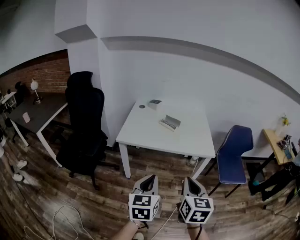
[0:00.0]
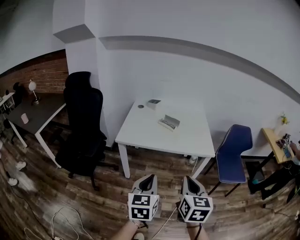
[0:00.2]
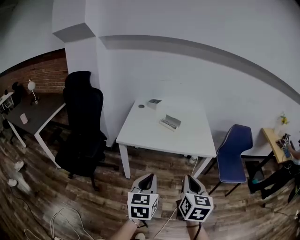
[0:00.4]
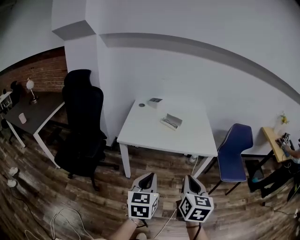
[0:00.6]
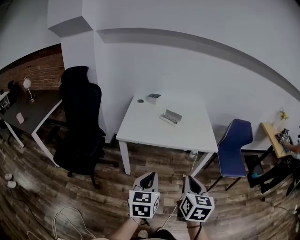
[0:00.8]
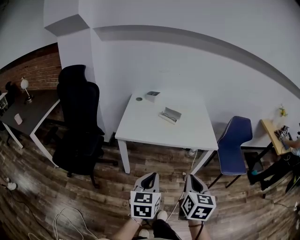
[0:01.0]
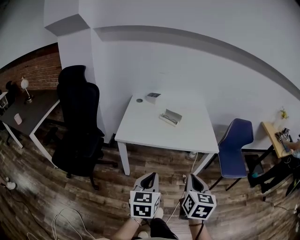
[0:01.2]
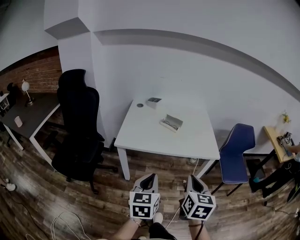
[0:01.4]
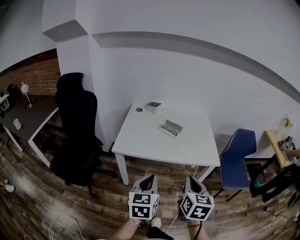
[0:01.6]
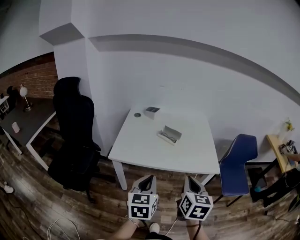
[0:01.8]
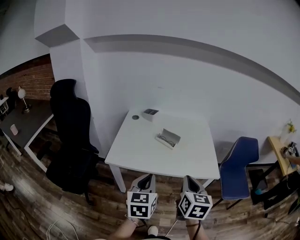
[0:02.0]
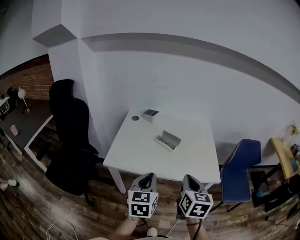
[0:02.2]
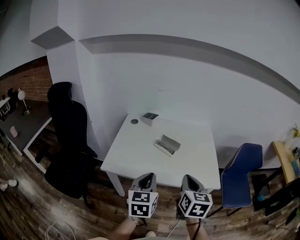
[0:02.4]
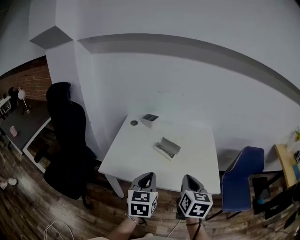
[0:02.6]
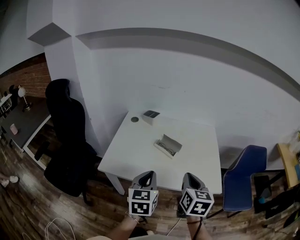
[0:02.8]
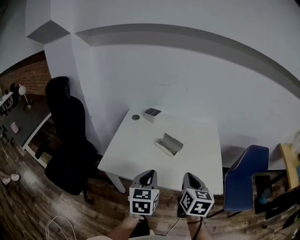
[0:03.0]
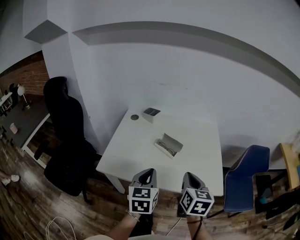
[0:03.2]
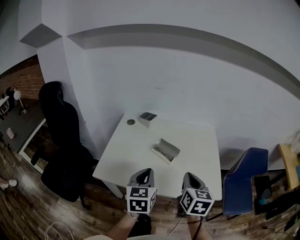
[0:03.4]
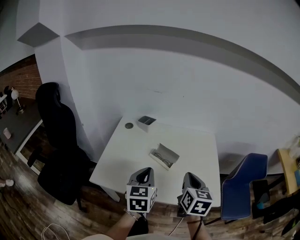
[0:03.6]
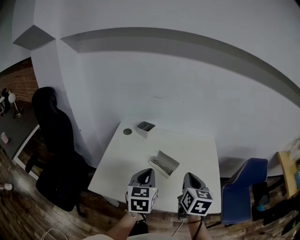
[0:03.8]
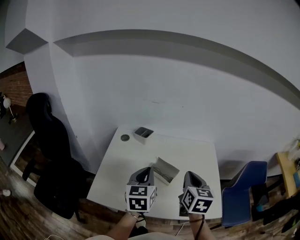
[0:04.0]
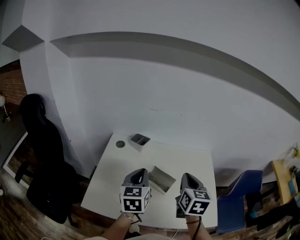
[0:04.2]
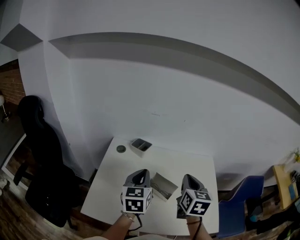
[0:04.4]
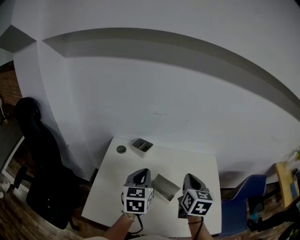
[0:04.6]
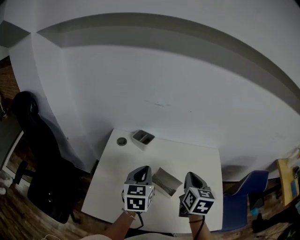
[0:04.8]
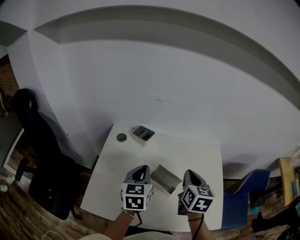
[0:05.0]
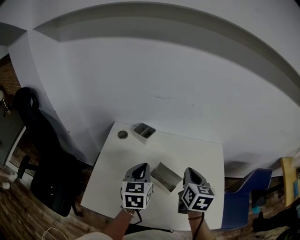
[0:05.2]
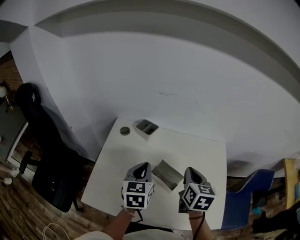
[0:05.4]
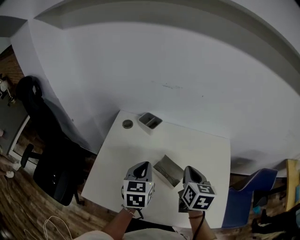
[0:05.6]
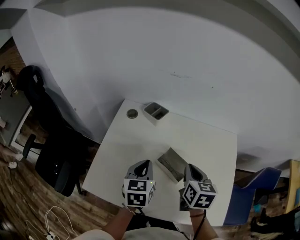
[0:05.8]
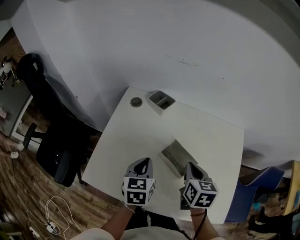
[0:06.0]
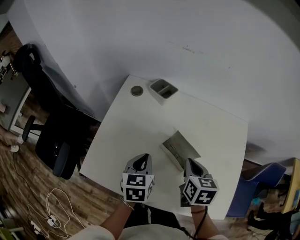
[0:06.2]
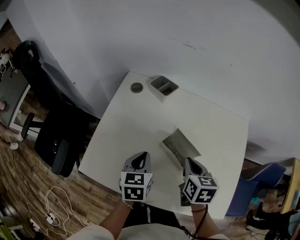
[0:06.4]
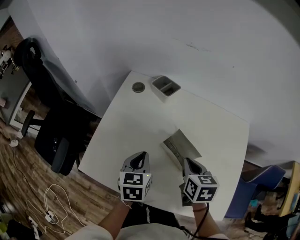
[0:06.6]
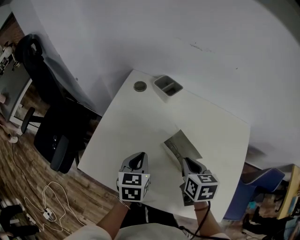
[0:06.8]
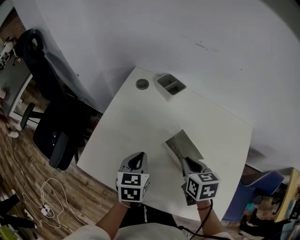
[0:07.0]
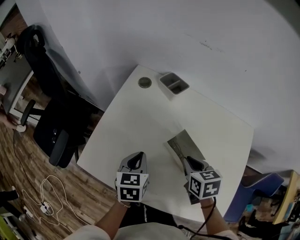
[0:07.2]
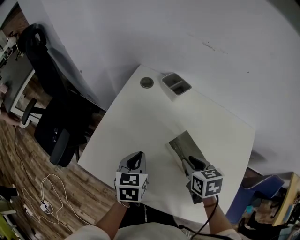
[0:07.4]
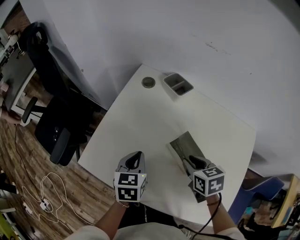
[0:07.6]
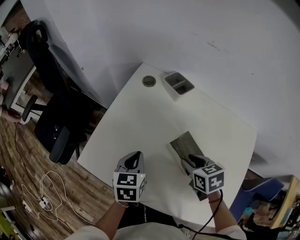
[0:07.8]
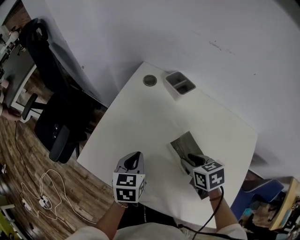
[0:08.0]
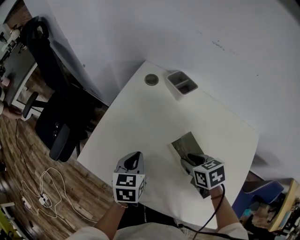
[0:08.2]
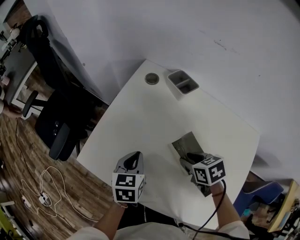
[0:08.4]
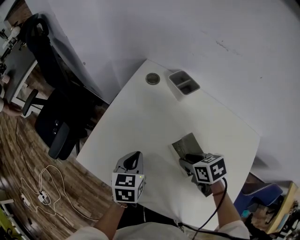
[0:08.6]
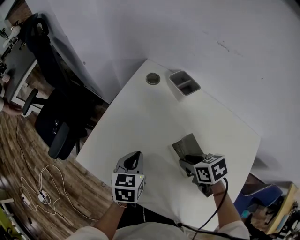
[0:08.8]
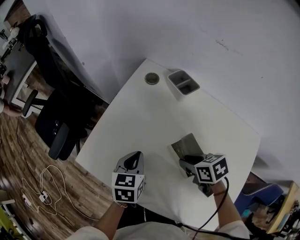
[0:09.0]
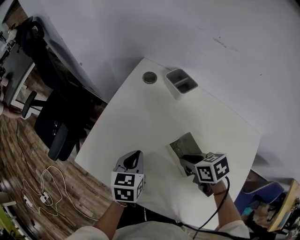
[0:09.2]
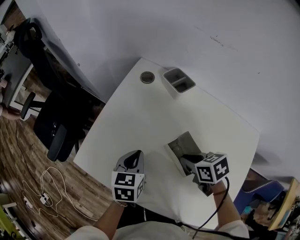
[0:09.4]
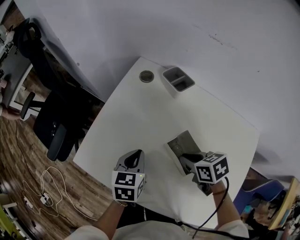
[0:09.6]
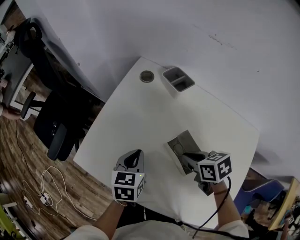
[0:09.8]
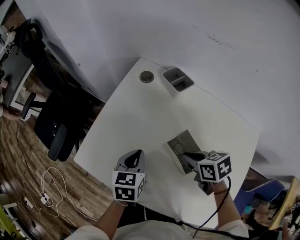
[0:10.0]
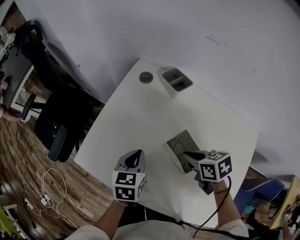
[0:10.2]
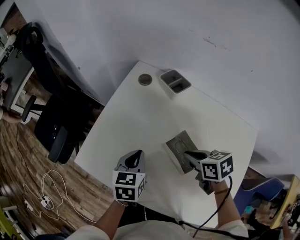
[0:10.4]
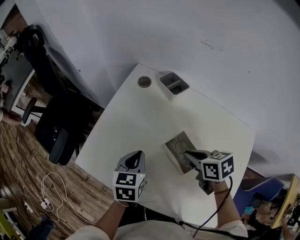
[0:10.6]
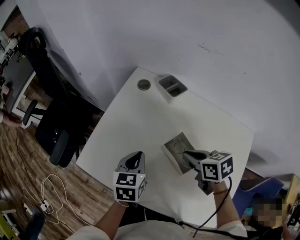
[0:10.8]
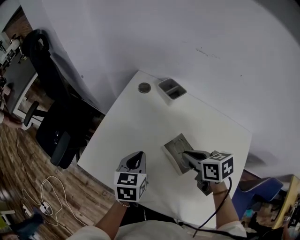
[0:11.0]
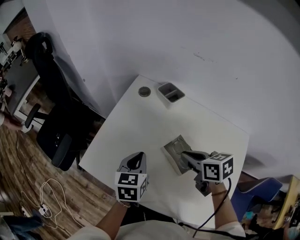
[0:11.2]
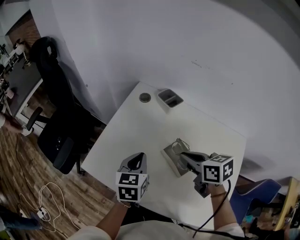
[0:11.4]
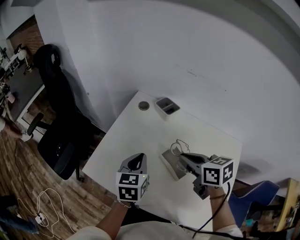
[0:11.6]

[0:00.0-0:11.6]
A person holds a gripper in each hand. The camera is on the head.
0:00.0 to 0:01.4: The two grippers go roughly 5 cm forward.
0:01.4 to 0:02.8: Both grippers travel together forward, about 25 cm.
0:02.8 to 0:04.4: Both grippers move forward, roughly 25 cm.
0:04.4 to 0:05.8: The grippers both shift downward by about 10 cm.
0:05.8 to 0:07.2: The grippers both shift downward by roughly 10 cm. The right gripper swivels roughly 30 degrees.
0:07.2 to 0:08.8: The right gripper swivels some 30 degrees, and opens up.
0:08.8 to 0:10.2: The right gripper closes.
0:10.2 to 0:11.6: The two grippers go some 10 cm upward. The right gripper turns by some 20 degrees.

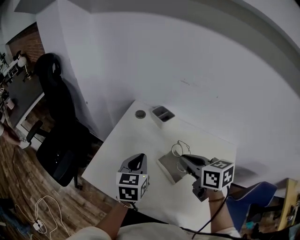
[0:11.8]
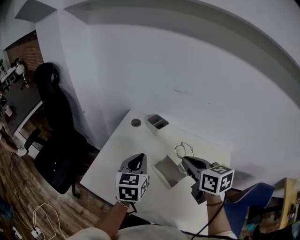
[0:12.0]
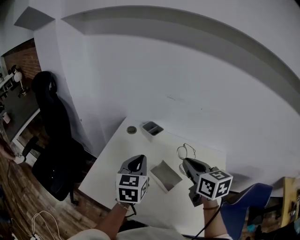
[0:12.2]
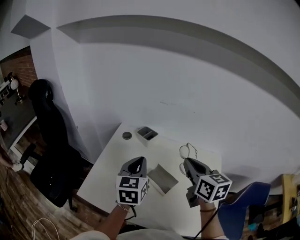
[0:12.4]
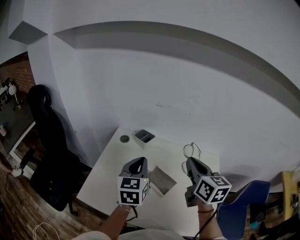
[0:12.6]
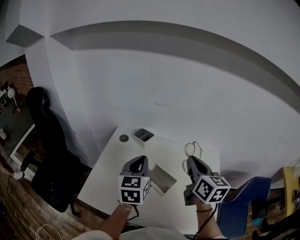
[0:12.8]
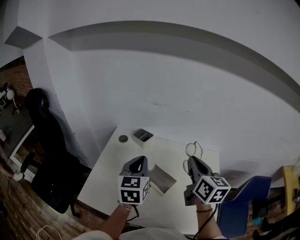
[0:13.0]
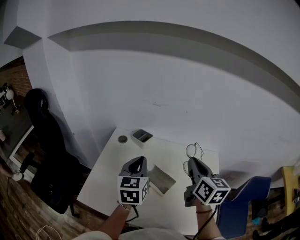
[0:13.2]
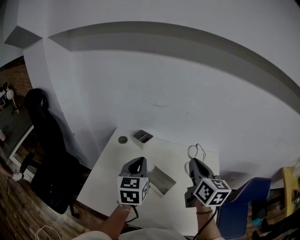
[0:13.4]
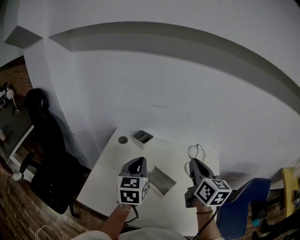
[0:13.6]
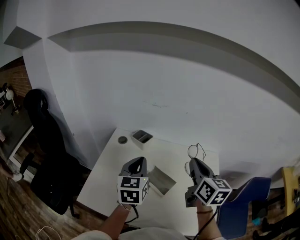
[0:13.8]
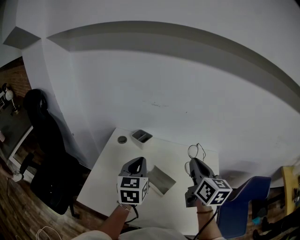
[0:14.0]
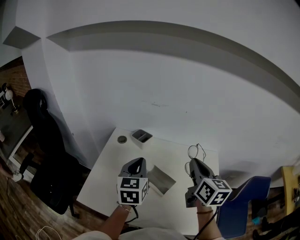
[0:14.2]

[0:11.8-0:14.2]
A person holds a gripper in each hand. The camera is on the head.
0:11.8 to 0:13.0: The left gripper moves upward and to the right, about 10 cm. Meanwhile the right gripper goes about 15 cm to the right and upward, and changes its angle by about 40 degrees.
0:13.0 to 0:14.2: Both grippers stay put.

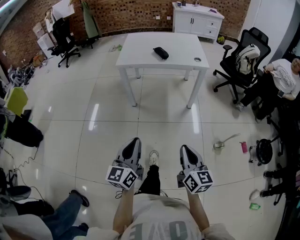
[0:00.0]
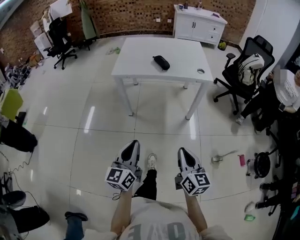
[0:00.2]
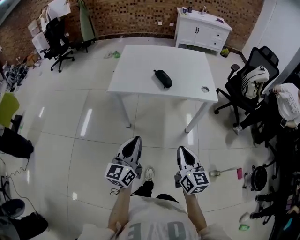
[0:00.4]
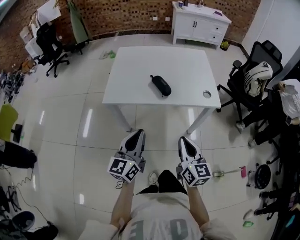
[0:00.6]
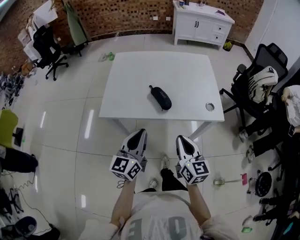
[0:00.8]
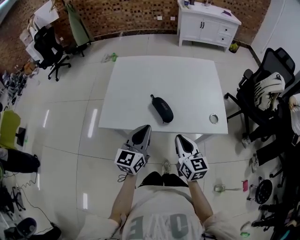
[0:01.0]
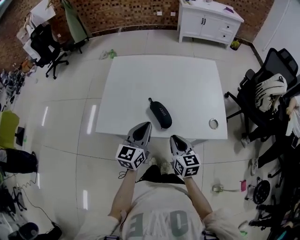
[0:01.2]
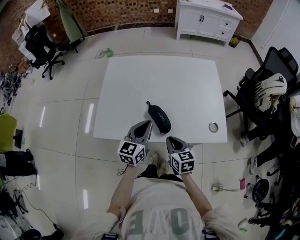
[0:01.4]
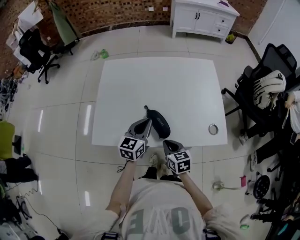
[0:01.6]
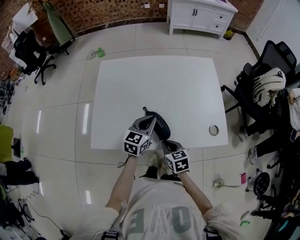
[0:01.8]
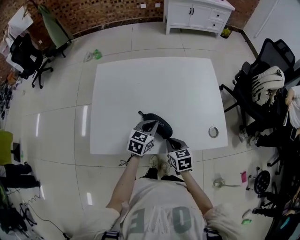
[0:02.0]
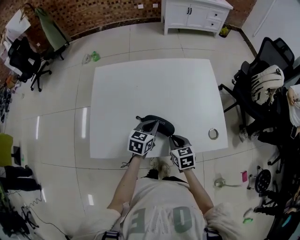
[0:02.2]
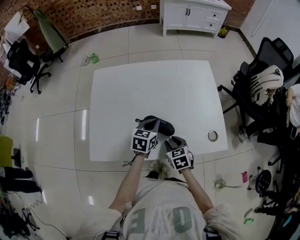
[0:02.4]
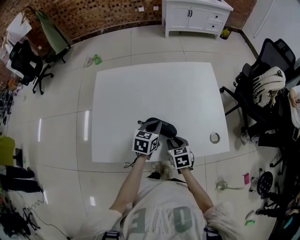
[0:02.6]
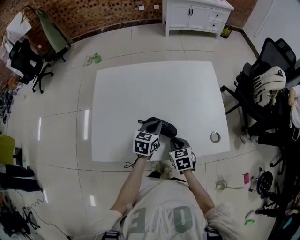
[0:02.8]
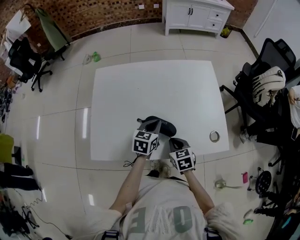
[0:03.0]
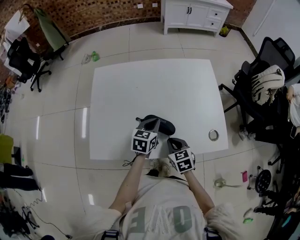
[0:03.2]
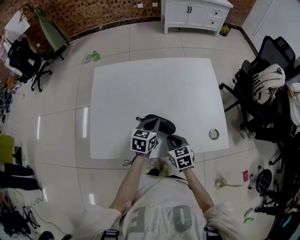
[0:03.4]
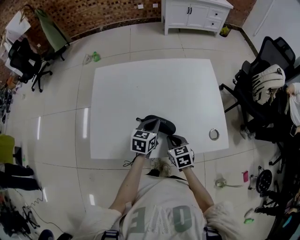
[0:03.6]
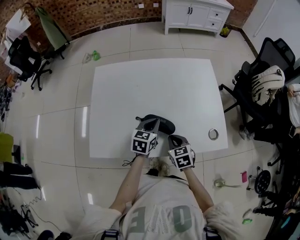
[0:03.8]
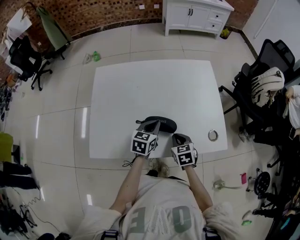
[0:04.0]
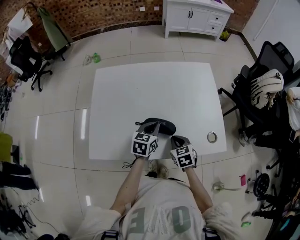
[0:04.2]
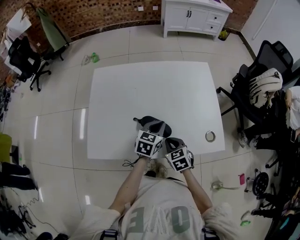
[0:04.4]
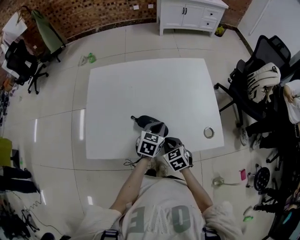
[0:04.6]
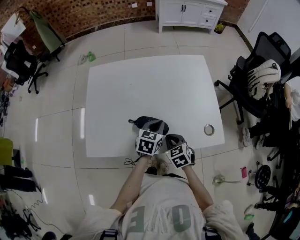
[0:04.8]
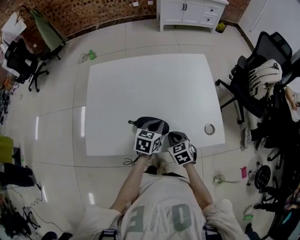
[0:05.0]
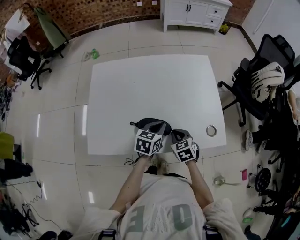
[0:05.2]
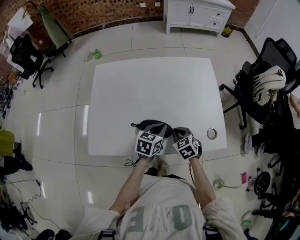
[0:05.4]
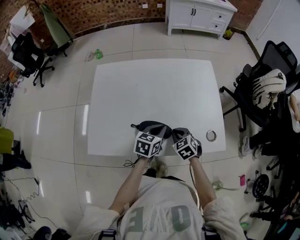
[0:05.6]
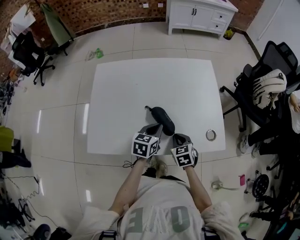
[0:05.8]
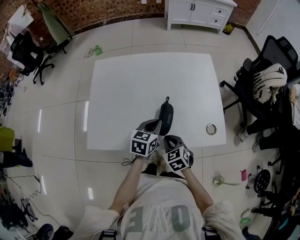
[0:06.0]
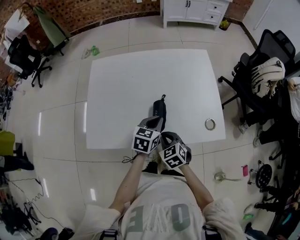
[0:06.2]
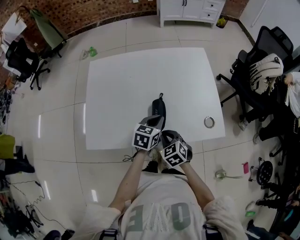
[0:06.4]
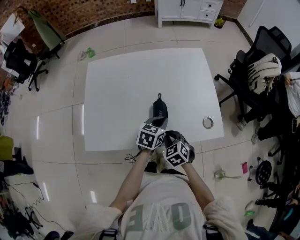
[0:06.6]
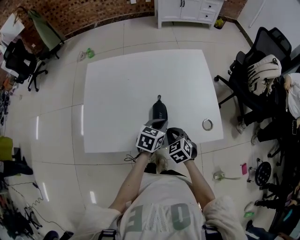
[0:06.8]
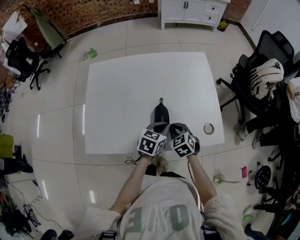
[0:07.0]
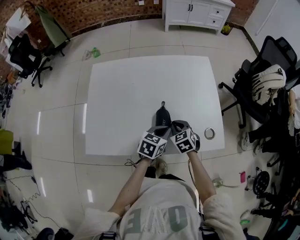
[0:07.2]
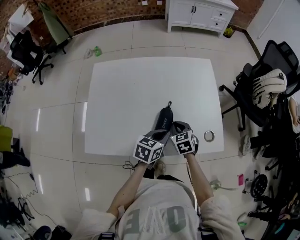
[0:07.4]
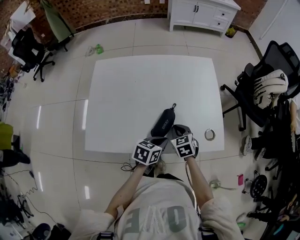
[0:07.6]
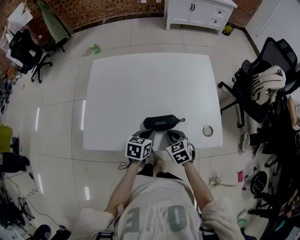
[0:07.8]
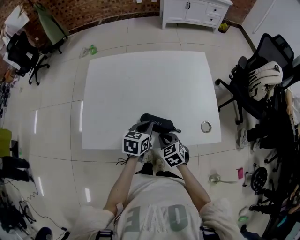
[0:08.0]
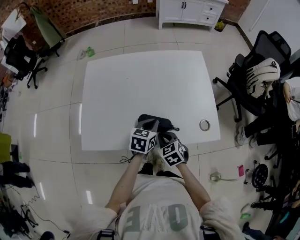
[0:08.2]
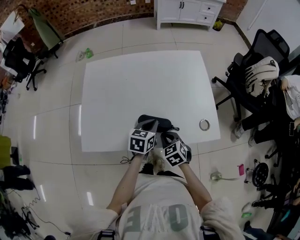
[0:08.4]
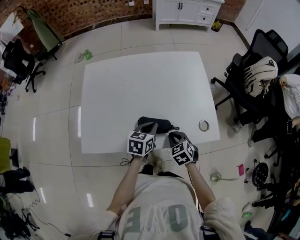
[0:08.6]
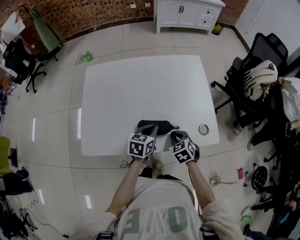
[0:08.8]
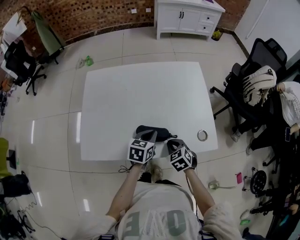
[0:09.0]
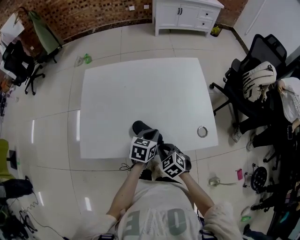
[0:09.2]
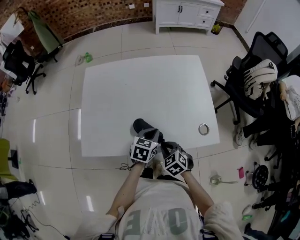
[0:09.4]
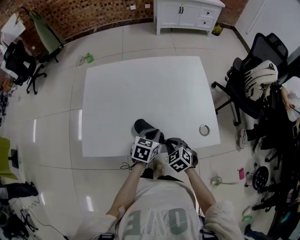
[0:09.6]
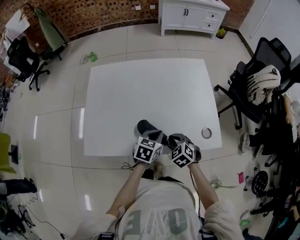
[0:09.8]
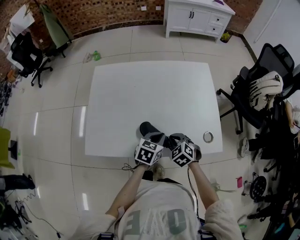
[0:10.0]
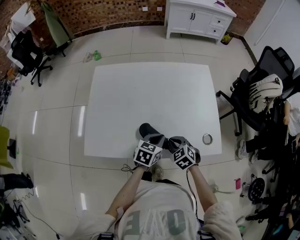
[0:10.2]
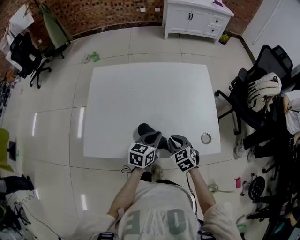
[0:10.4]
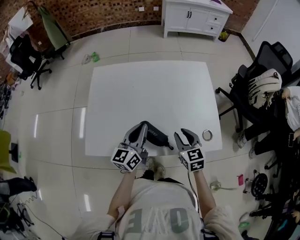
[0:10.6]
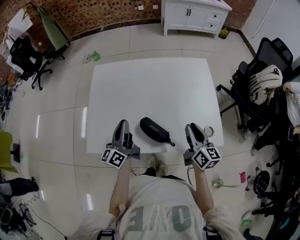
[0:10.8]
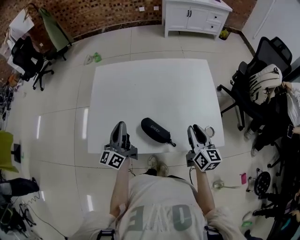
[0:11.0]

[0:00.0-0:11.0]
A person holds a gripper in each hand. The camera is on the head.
0:00.0 to 0:01.6: The pair of grippers is taken forward, some 80 cm. The right gripper turns by some 30 degrees. The left gripper swivels some 20 degrees.
0:01.6 to 0:03.2: The left gripper is displaced forward and downward by approximately 10 cm. Meanwhile the right gripper goes about 10 cm forward, and opens and closes again.
0:03.2 to 0:04.8: The left gripper is displaced to the right by roughly 5 cm.
0:04.8 to 0:06.2: The grippers make only small movements.
0:06.2 to 0:07.8: The left gripper changes place by about 5 cm; the right gripper reaches about 10 cm forward, then returns.
0:07.8 to 0:09.4: The right gripper shifts approximately 5 cm backward.
0:09.4 to 0:11.0: The right gripper goes approximately 15 cm upward, to the right and forward, tilts its fingers some 40 degrees upward, and opens, while the left gripper heads to the left and upward, covering roughly 20 cm, and tips its fingers upward by about 50 degrees.
